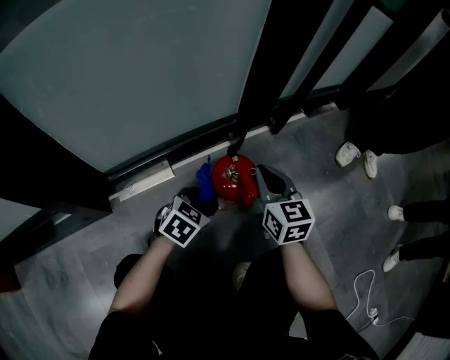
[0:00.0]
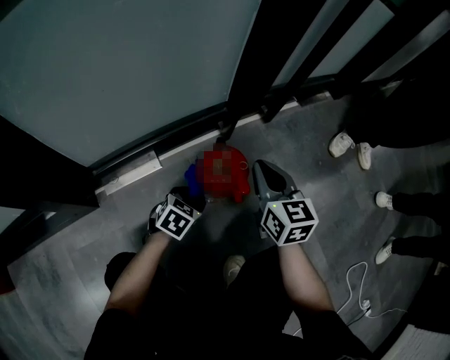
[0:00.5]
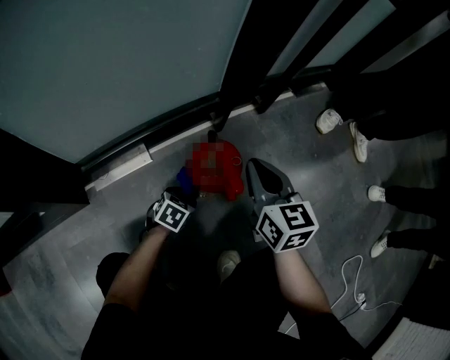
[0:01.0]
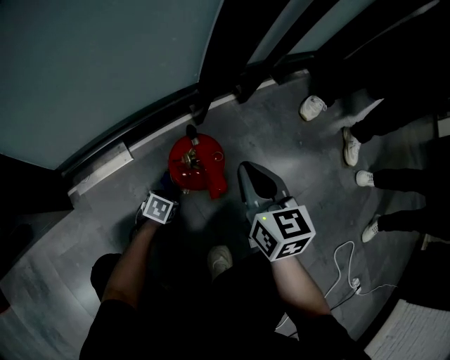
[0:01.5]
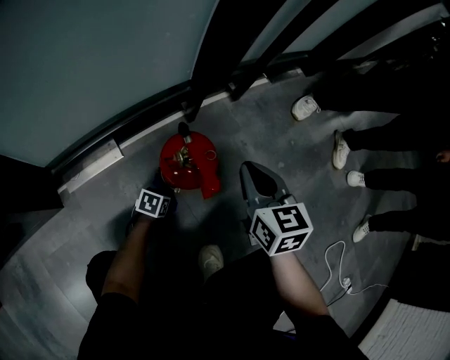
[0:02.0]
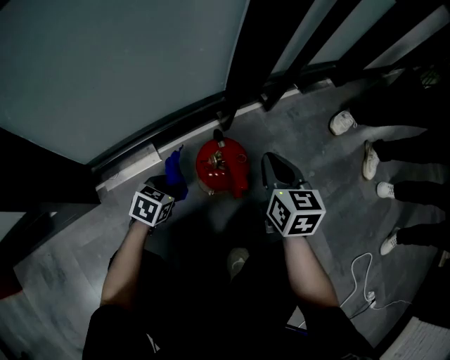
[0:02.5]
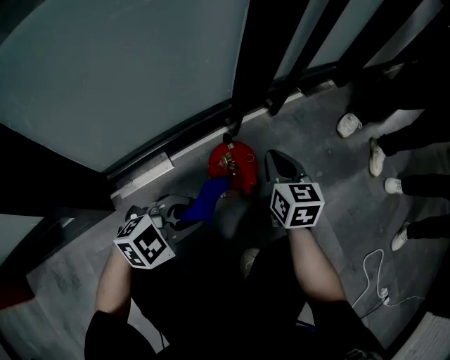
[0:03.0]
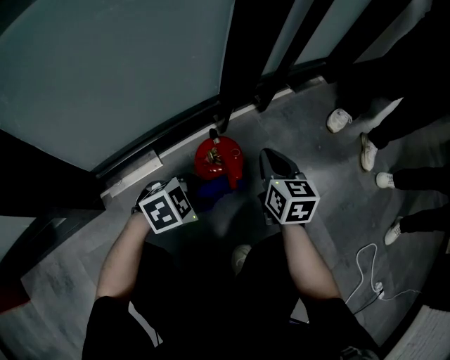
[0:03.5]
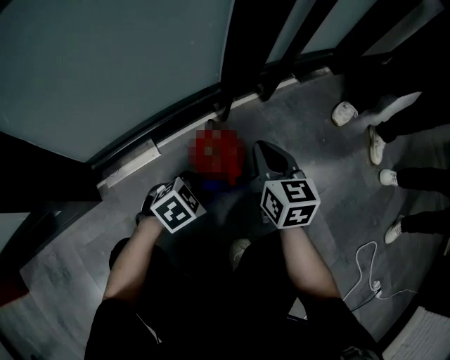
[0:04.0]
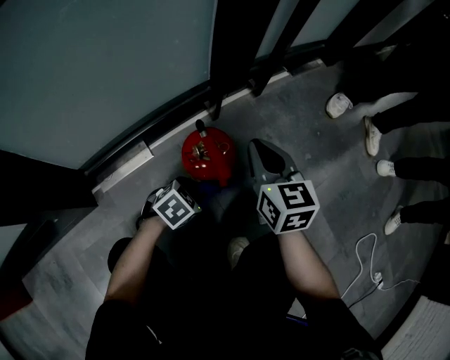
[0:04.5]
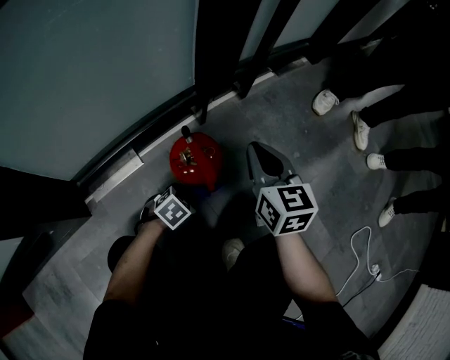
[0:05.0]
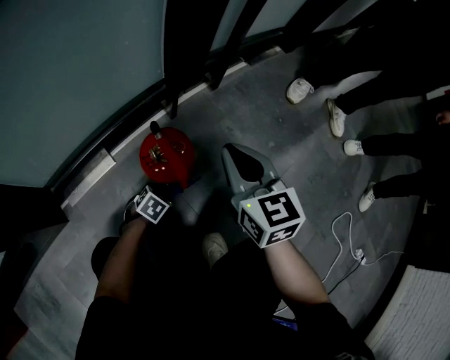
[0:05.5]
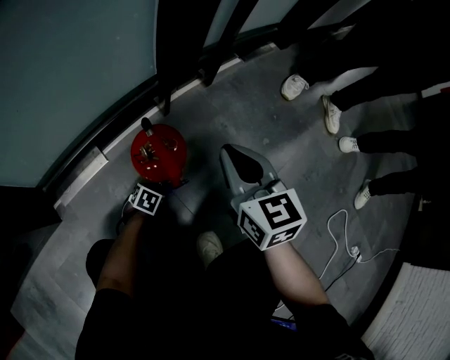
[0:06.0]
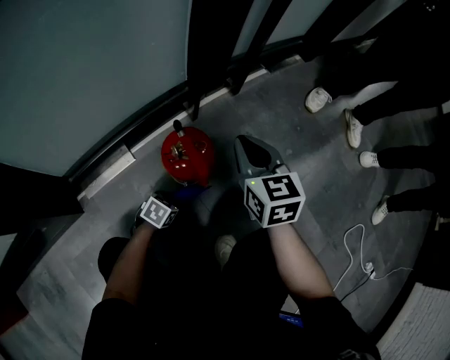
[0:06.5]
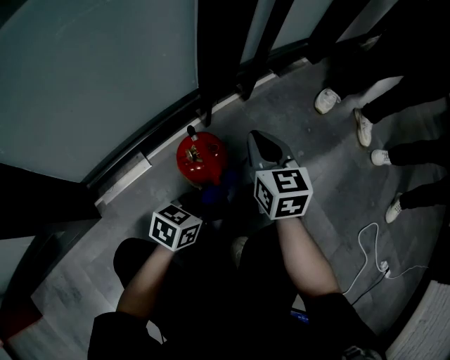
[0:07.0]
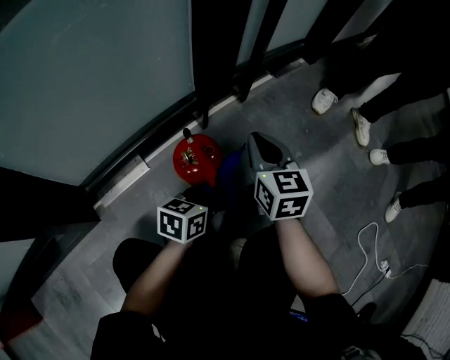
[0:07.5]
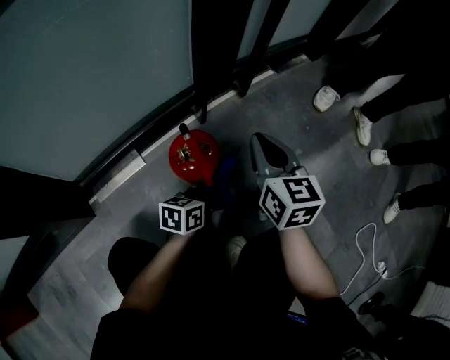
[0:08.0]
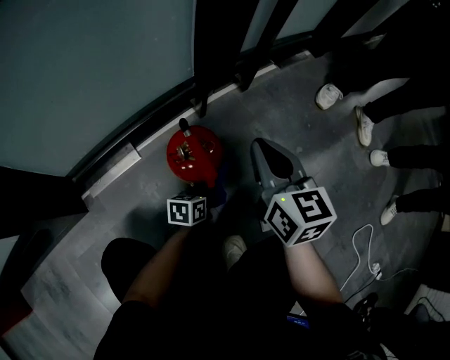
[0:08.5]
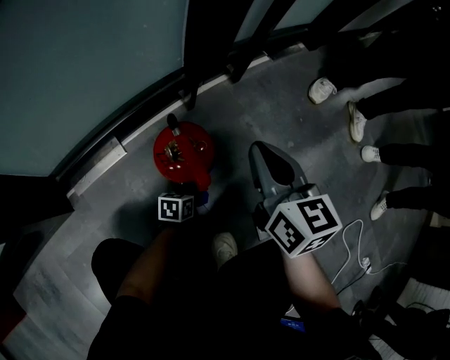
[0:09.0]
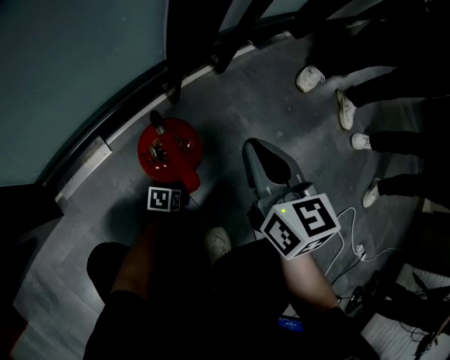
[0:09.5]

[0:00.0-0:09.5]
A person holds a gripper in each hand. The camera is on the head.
0:00.0 to 0:02.0: The left gripper shifts about 30 cm downward, and rotates about 30 degrees. Meanwhile the right gripper is displaced to the right by approximately 5 cm.
0:02.0 to 0:04.0: The left gripper shifts about 25 cm upward, and twists some 40 degrees clockwise, seen from behind.
0:04.0 to 0:05.5: The right gripper ends up about 5 cm from where it was. The left gripper moves downward, approximately 15 cm.
0:05.5 to 0:07.5: The left gripper is displaced upward by about 20 cm, and angles its fingers upward, by some 30 degrees.
0:07.5 to 0:09.5: The left gripper heads downward, covering about 30 cm, and swivels some 30 degrees.

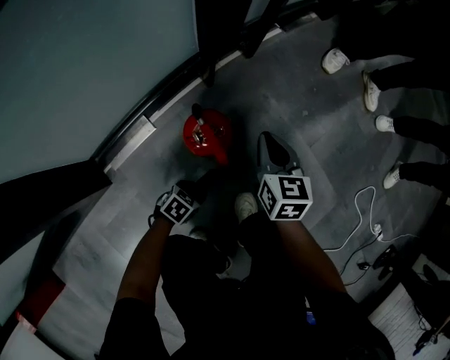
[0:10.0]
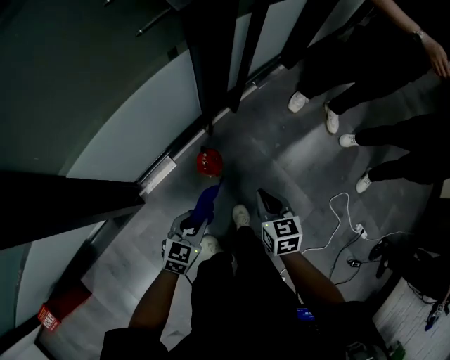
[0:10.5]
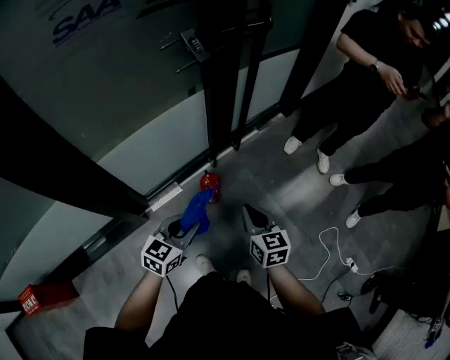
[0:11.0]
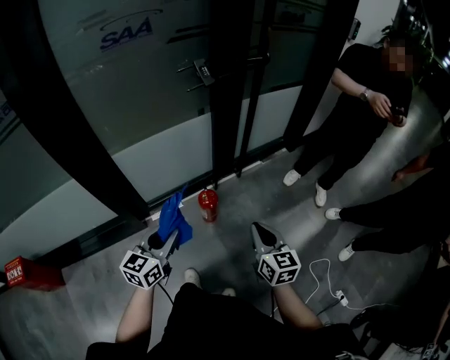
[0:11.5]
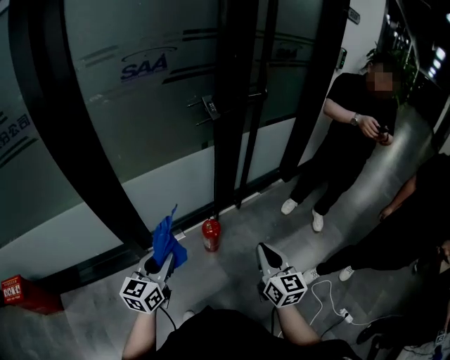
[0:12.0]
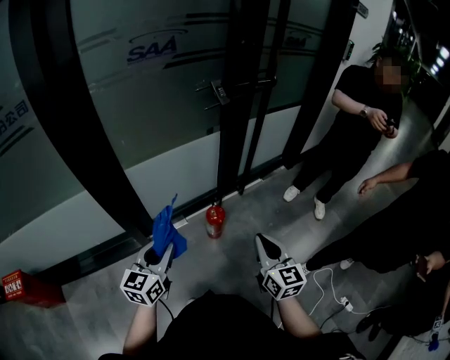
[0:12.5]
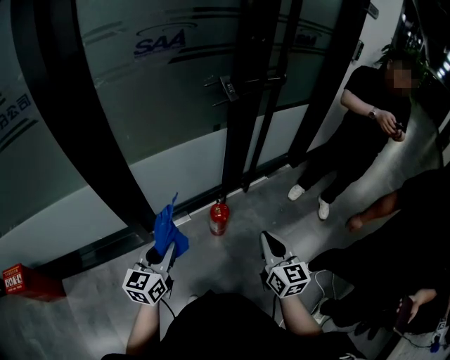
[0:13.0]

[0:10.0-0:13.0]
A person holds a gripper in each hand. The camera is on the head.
0:10.0 to 0:11.5: Both grippers move upward, approximately 70 cm. The left gripper points its fingers about 40 degrees further upward, while the right gripper rotates approximately 20 degrees.
0:11.5 to 0:13.0: The grippers both shift to the left by approximately 10 cm.

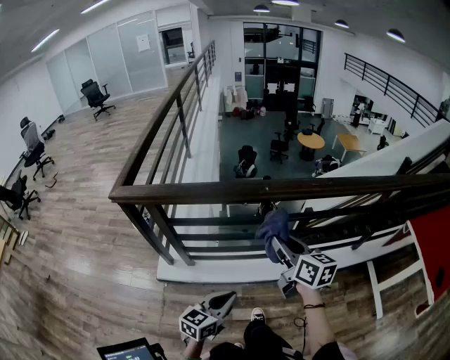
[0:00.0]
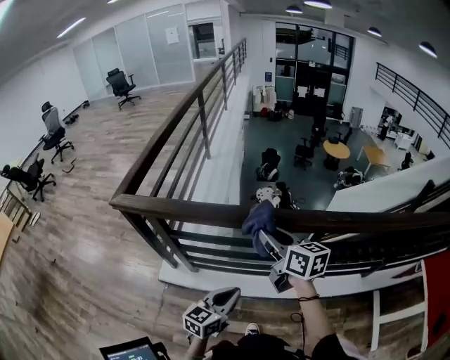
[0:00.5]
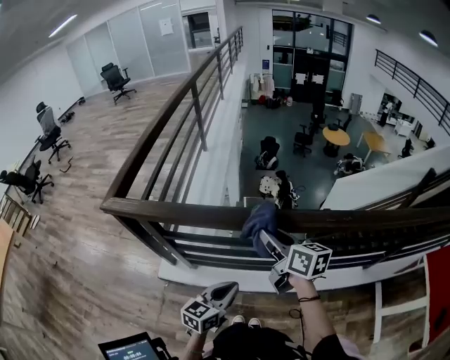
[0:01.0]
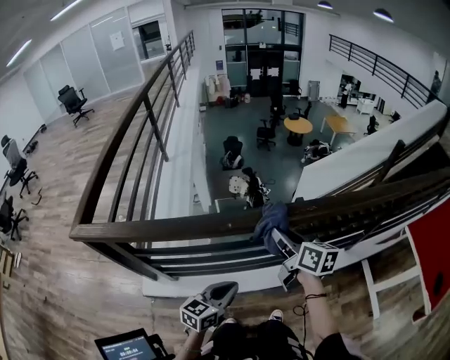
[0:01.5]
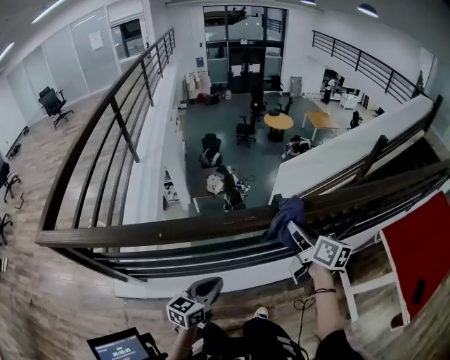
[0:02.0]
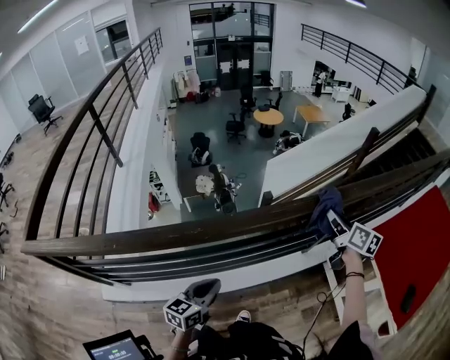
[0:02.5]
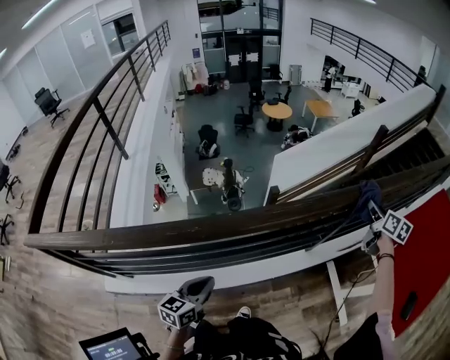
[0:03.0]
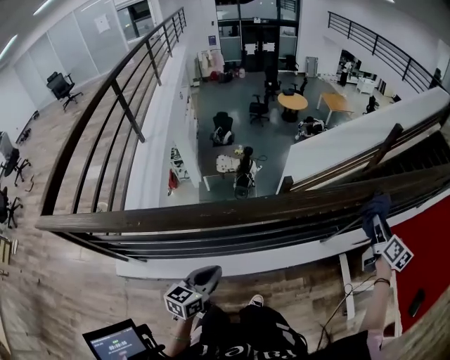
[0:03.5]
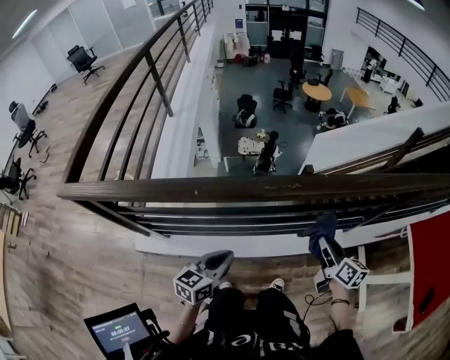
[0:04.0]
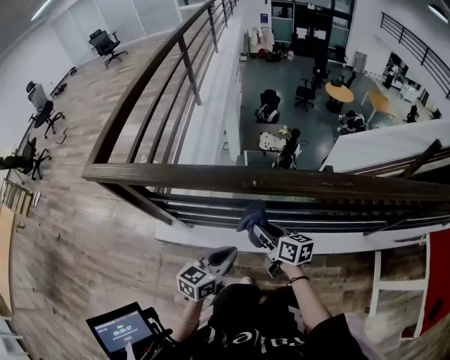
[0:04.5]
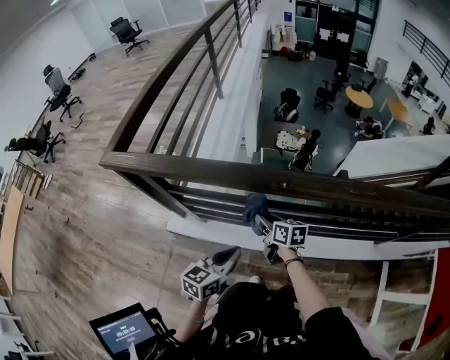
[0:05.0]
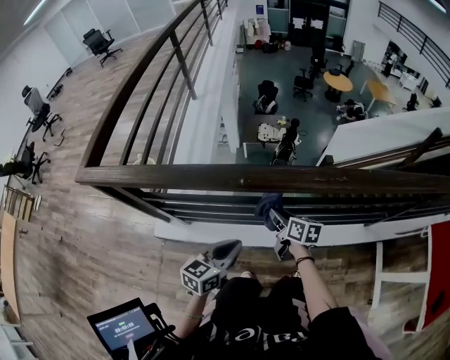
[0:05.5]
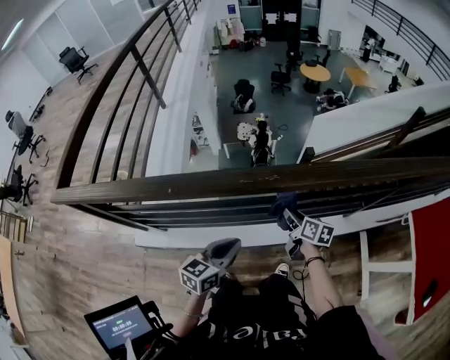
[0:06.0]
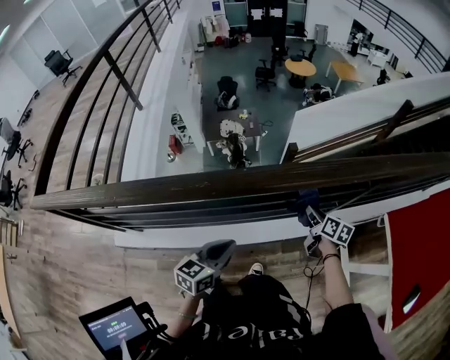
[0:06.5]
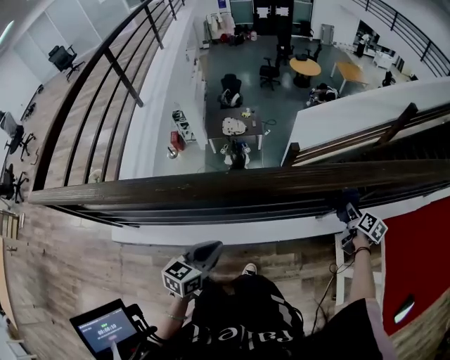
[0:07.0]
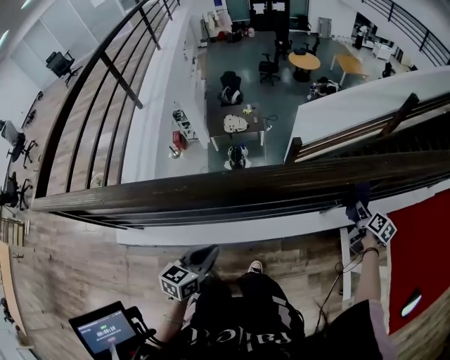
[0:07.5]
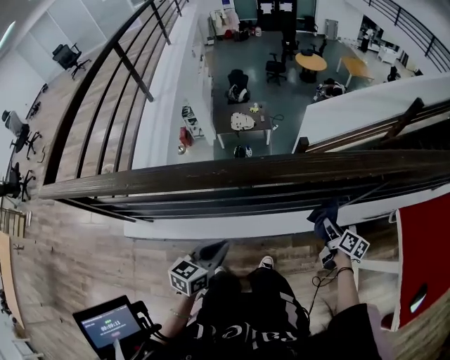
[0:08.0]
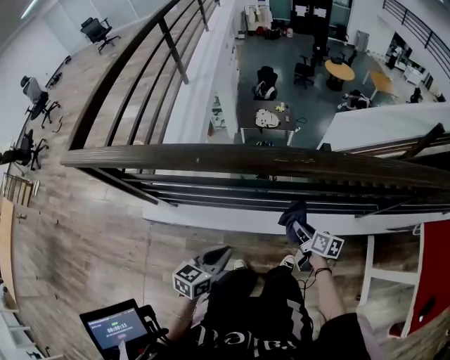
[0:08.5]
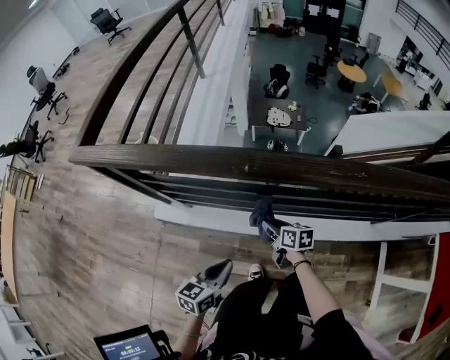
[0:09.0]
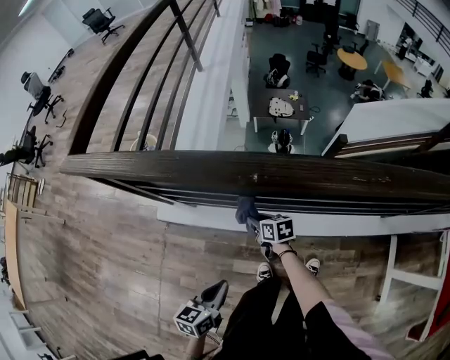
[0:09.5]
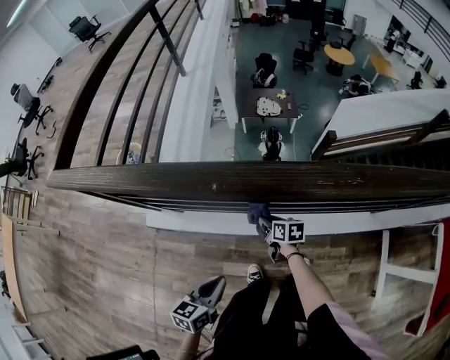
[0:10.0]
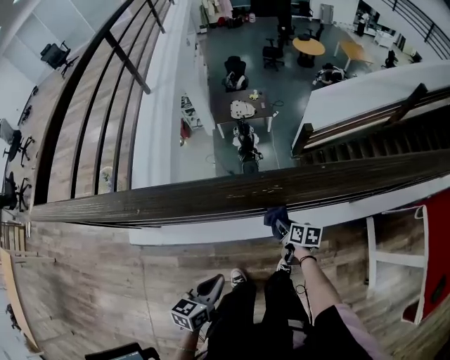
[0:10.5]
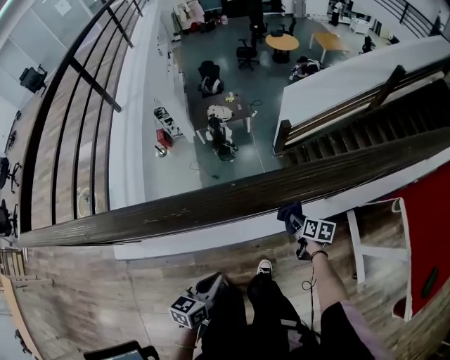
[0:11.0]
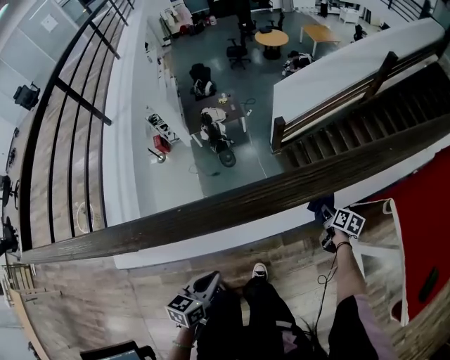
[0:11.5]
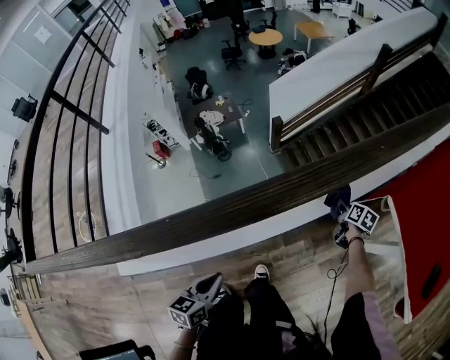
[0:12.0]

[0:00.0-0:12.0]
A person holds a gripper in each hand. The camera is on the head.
0:00.0 to 0:02.0: The grippers both shift to the right and forward by approximately 40 cm.
0:02.0 to 0:04.0: The left gripper reaches roughly 10 cm to the right, then returns. Meanwhile the right gripper moves downward and backward, approximately 15 cm, and moves approximately 40 cm to the right and comes back.
0:04.0 to 0:06.0: The left gripper travels to the left and back again, approximately 20 cm each way. The right gripper moves downward and forward, about 15 cm, and goes to the left and returns, roughly 50 cm each way.
0:06.0 to 0:08.0: The left gripper shifts roughly 15 cm to the right and downward. The right gripper heads to the right, covering some 35 cm.
0:08.0 to 0:10.0: The left gripper shifts by approximately 35 cm, while the right gripper shifts by roughly 60 cm, and changes its angle by roughly 40 degrees.
0:10.0 to 0:12.0: The two grippers travel together, roughly 60 cm. The right gripper swivels roughly 60 degrees, while the left gripper changes its angle by approximately 20 degrees.

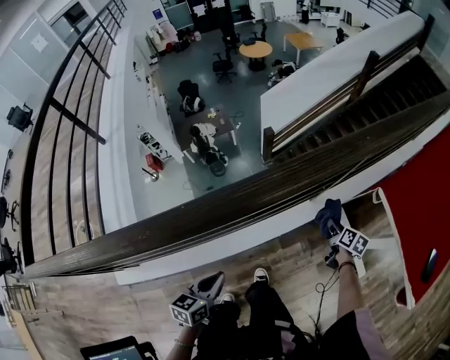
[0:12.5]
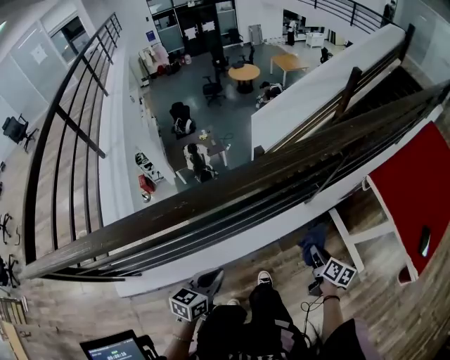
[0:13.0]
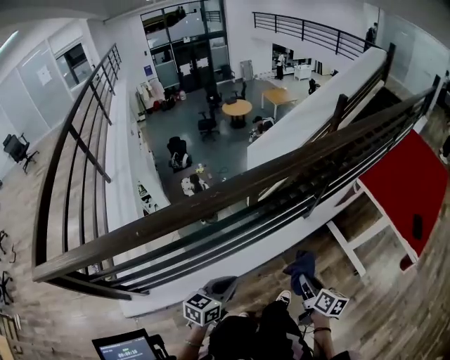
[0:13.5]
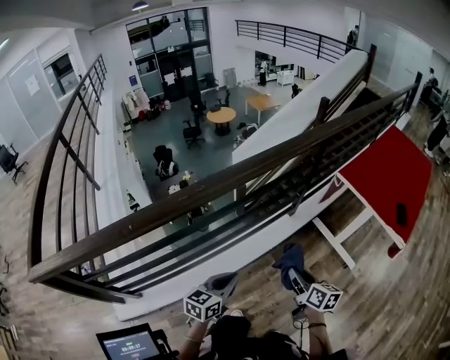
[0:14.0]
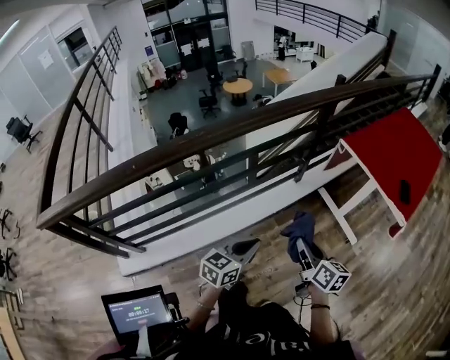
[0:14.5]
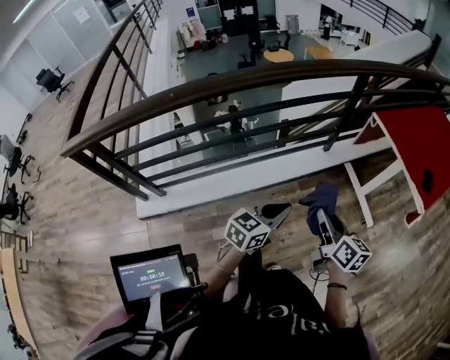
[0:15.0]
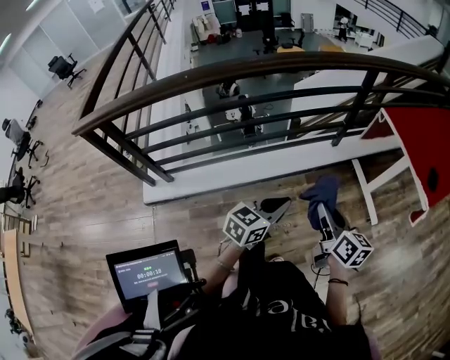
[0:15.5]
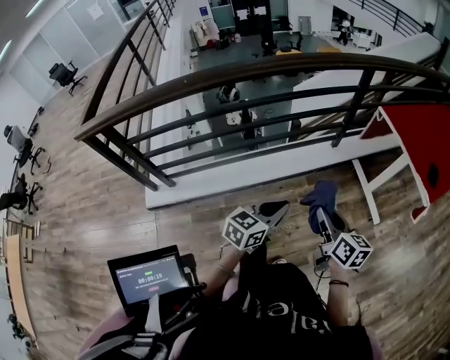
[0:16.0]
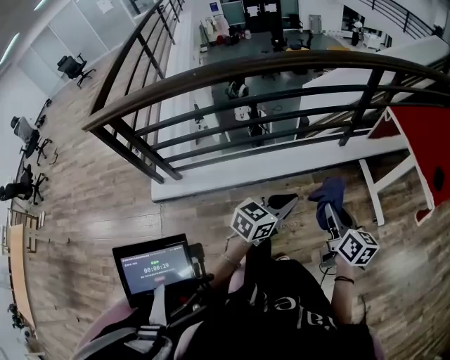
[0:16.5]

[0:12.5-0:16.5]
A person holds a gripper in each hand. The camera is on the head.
0:12.5 to 0:14.5: The right gripper goes some 60 cm backward and upward, and rotates roughly 30 degrees; the left gripper heads backward and upward, covering about 30 cm, and turns by some 30 degrees.
0:14.5 to 0:16.5: The grippers both shift backward by some 15 cm.
